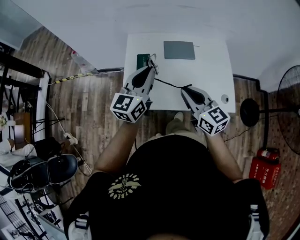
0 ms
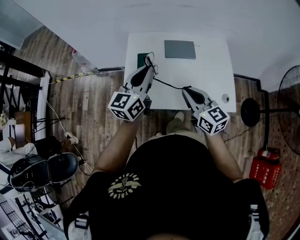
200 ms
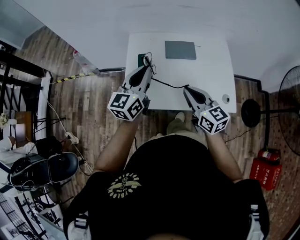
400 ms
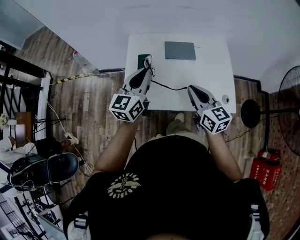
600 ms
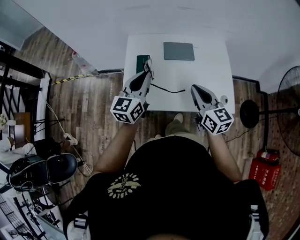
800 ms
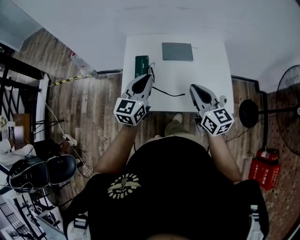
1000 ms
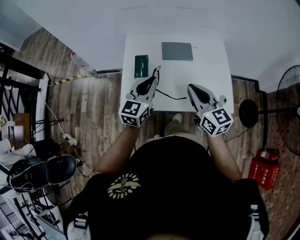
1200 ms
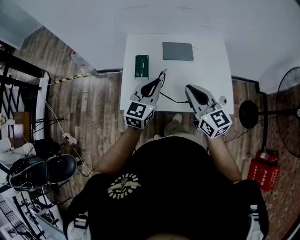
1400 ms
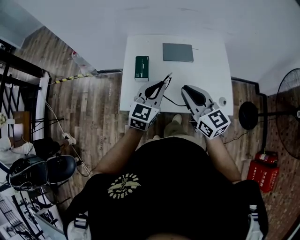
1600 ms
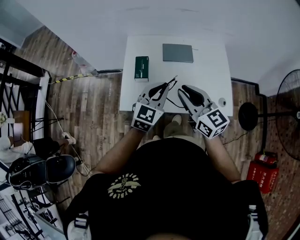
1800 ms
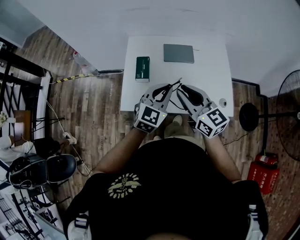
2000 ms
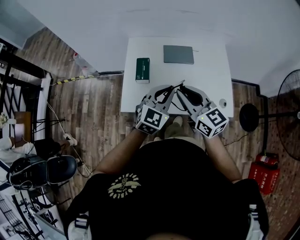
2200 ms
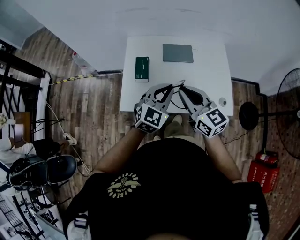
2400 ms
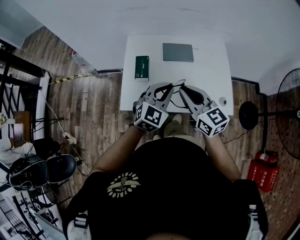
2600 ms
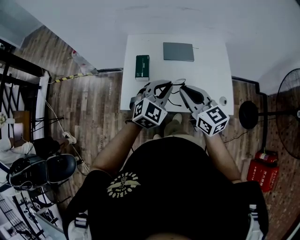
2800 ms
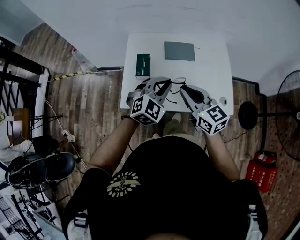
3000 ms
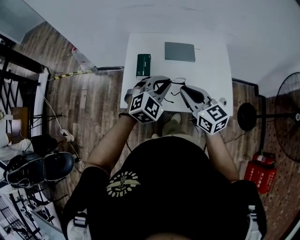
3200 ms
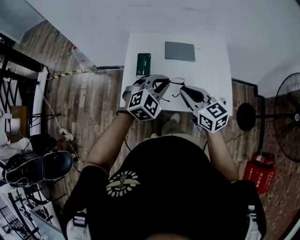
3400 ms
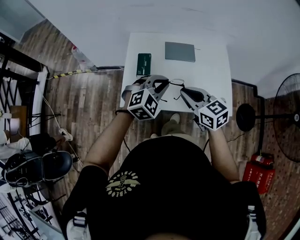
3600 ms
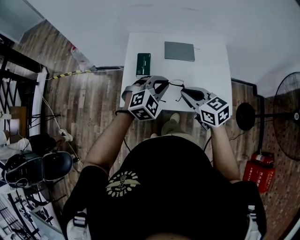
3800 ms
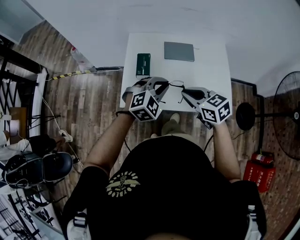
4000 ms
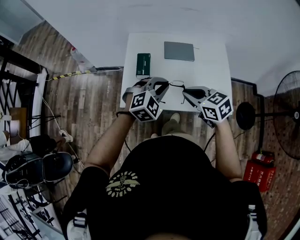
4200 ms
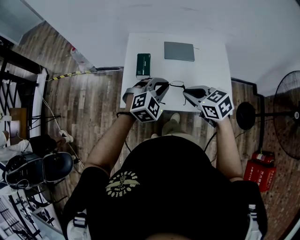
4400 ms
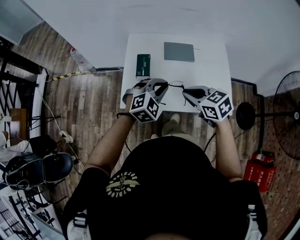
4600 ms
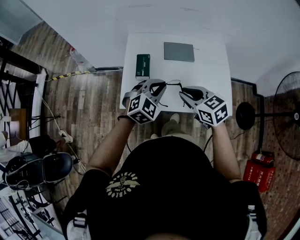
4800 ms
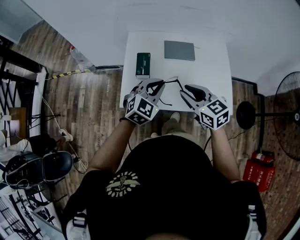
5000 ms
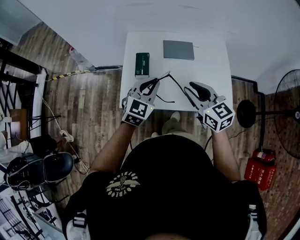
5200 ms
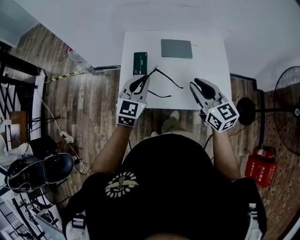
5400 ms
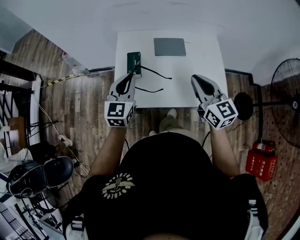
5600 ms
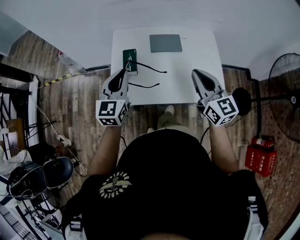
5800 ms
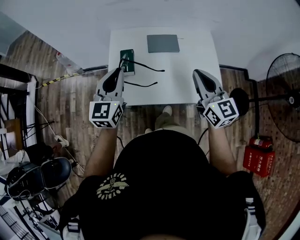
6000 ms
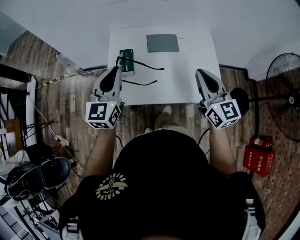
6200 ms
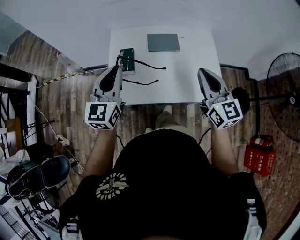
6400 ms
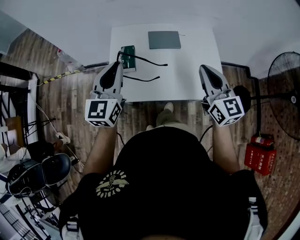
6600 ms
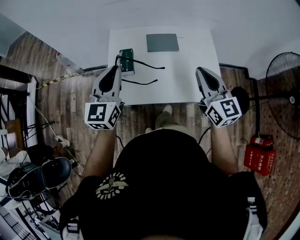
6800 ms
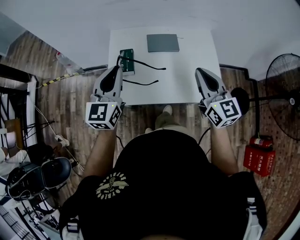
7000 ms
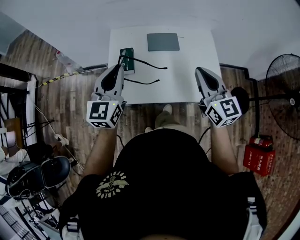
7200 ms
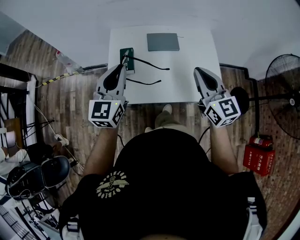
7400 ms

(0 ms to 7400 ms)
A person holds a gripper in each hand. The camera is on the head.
0 ms - 1400 ms: The left gripper heads downward, covering roughly 5 cm.
1400 ms - 3000 ms: The left gripper swivels roughly 40 degrees.
3000 ms - 4400 ms: The right gripper shifts by some 5 cm, and rotates approximately 30 degrees.
4400 ms - 6000 ms: The left gripper goes some 15 cm to the left and upward, and swivels approximately 60 degrees. The right gripper heads upward and to the right, covering some 15 cm, points its fingers approximately 30 degrees further upward, and opens and closes again.
6000 ms - 7400 ms: There are only small adjustments of the grippers.

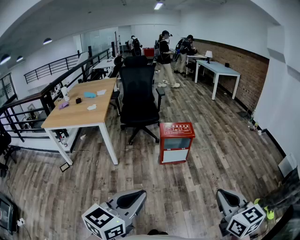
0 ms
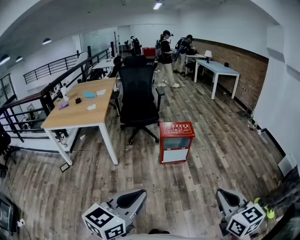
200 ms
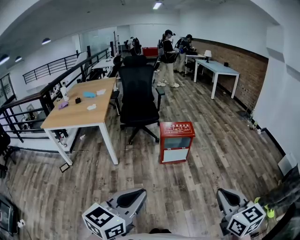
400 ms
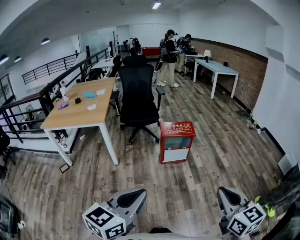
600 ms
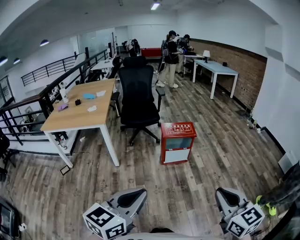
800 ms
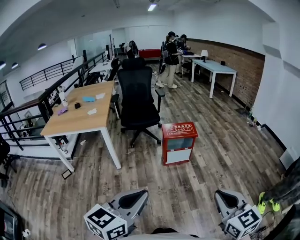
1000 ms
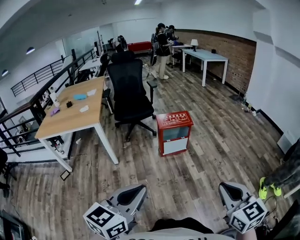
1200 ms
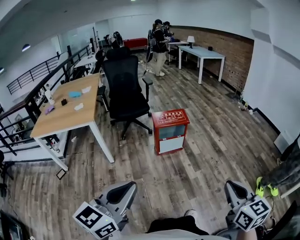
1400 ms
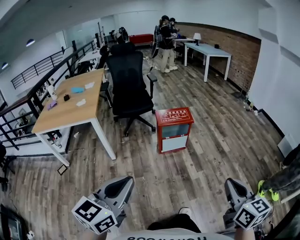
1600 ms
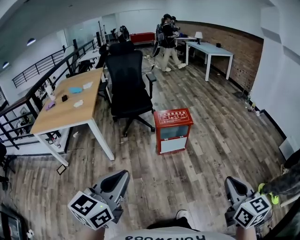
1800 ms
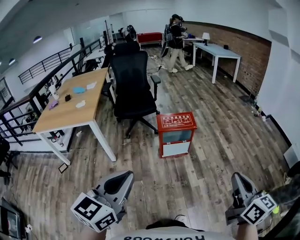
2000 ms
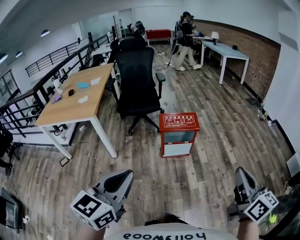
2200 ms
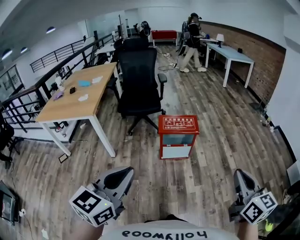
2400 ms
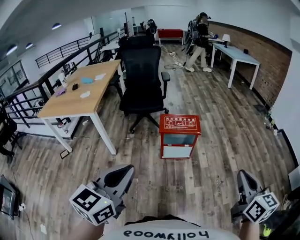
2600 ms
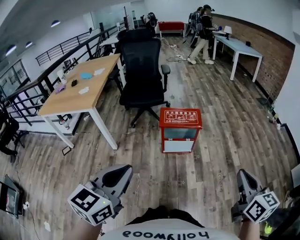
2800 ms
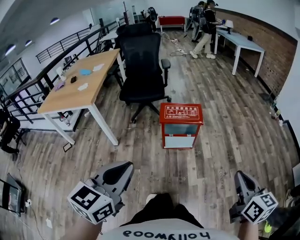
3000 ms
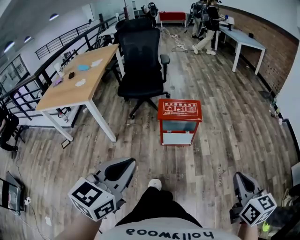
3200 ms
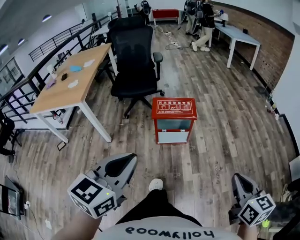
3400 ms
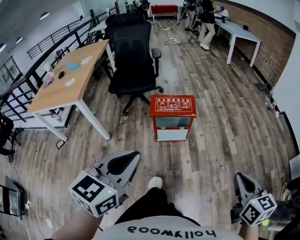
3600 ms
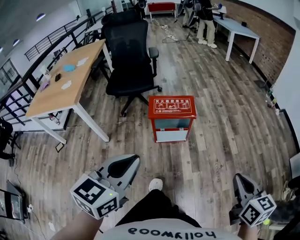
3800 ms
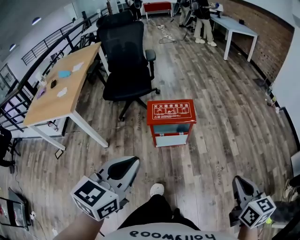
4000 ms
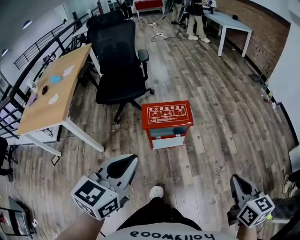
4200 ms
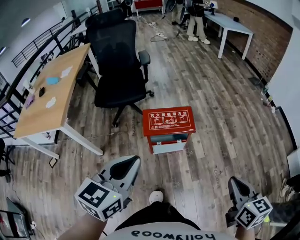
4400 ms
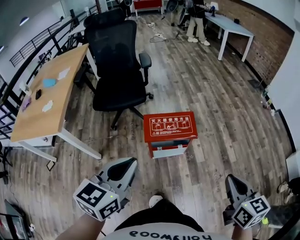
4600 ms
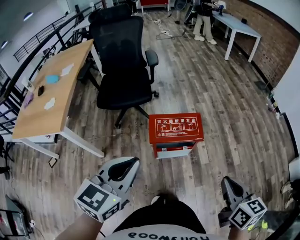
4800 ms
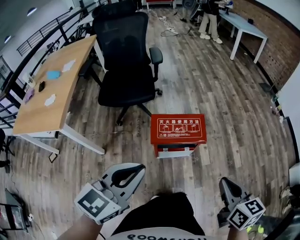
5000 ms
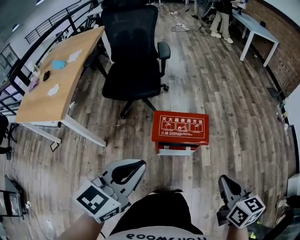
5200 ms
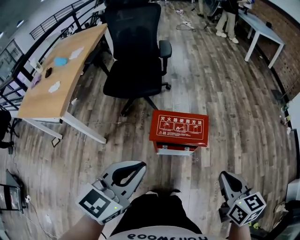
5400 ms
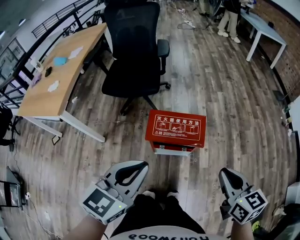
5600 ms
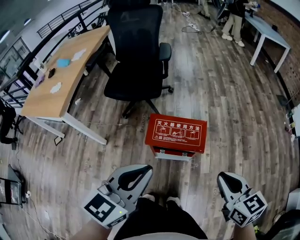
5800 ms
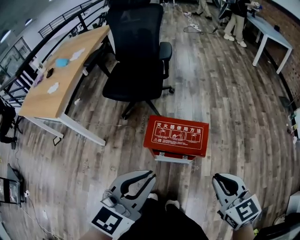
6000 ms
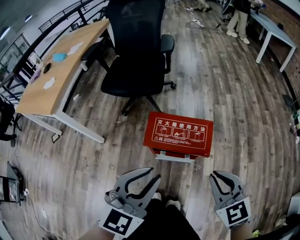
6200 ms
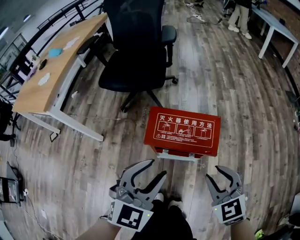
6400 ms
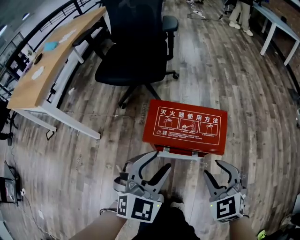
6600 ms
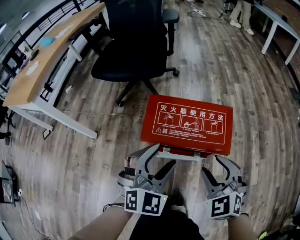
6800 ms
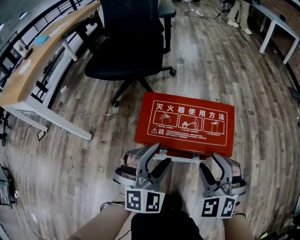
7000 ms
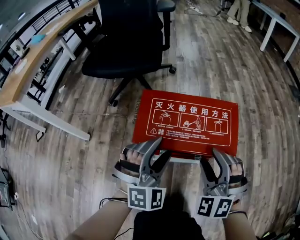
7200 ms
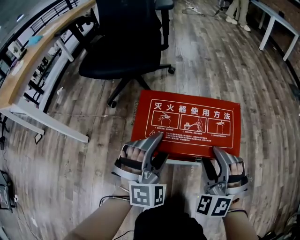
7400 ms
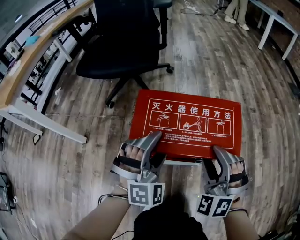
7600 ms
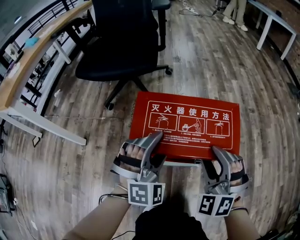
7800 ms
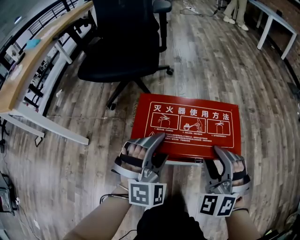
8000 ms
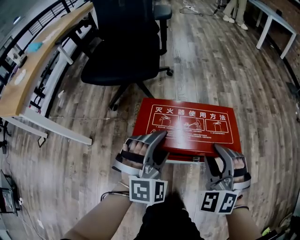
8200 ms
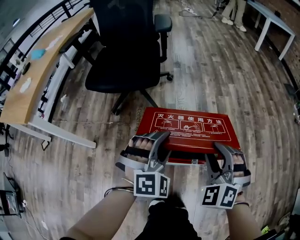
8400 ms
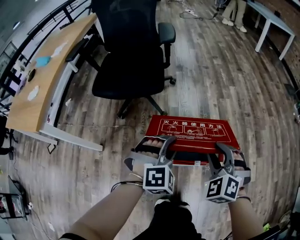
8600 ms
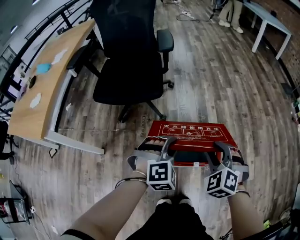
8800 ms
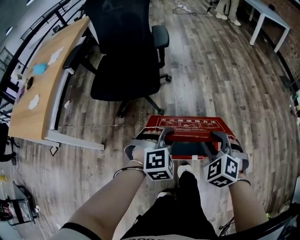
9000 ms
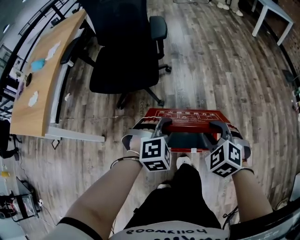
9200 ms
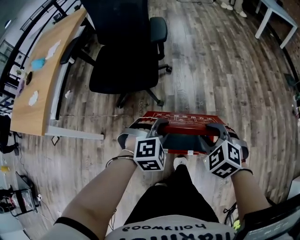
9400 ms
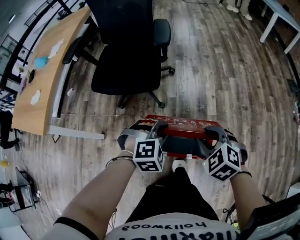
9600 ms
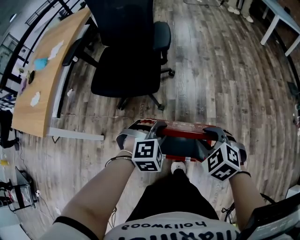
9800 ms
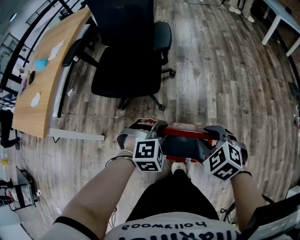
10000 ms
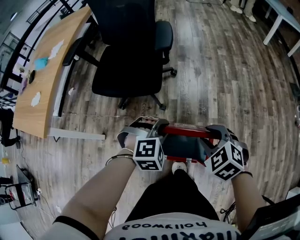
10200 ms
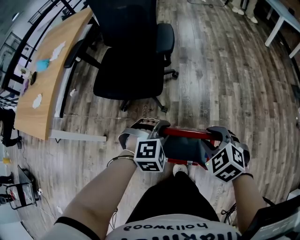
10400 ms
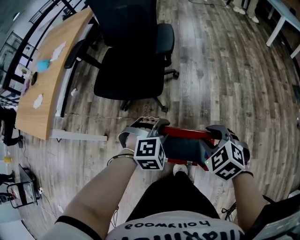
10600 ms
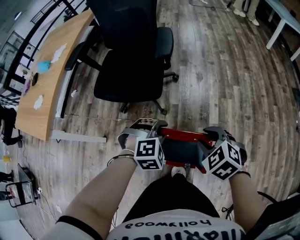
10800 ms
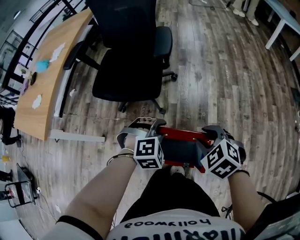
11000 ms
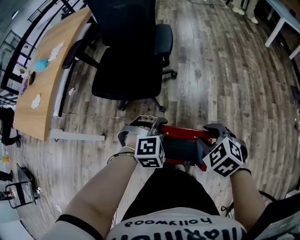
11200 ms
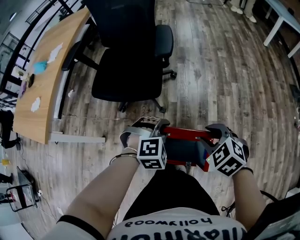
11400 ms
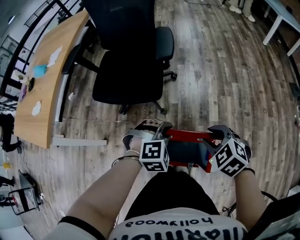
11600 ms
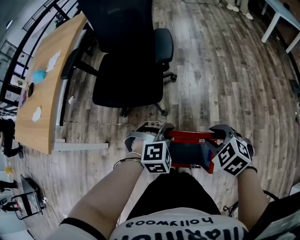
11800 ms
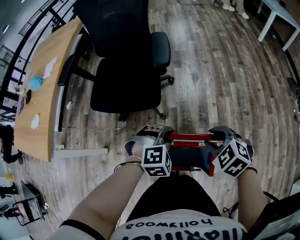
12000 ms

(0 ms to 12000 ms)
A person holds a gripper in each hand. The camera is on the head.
0 ms - 1600 ms: The right gripper ends up some 5 cm from where it was. Meanwhile the left gripper moves to the left and forward, approximately 10 cm.
1600 ms - 3000 ms: The two grippers go roughly 25 cm forward and to the right.
3000 ms - 4400 ms: The right gripper travels forward by roughly 15 cm; the left gripper is displaced forward by about 25 cm.
4400 ms - 6000 ms: The left gripper moves forward, to the right and downward, approximately 15 cm. The right gripper moves forward, approximately 25 cm, and swivels approximately 40 degrees.
6000 ms - 7600 ms: Both grippers travel together downward and forward, roughly 40 cm. The left gripper rolls clockwise, seen from behind, by some 60 degrees, and opens its fingers. The right gripper rolls counterclockwise, seen from behind, by about 60 degrees, and opens.
7600 ms - 9000 ms: The two grippers go roughly 15 cm upward. The right gripper changes its angle by some 30 degrees; the left gripper turns by roughly 30 degrees, and closes its fingers.
9000 ms - 10400 ms: Both grippers travel together forward, approximately 10 cm.
10400 ms - 12000 ms: There are only small adjustments of the grippers.

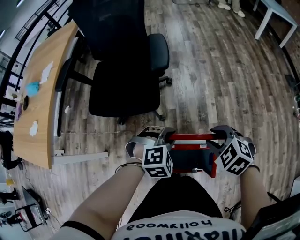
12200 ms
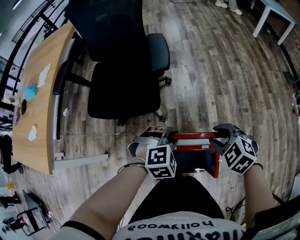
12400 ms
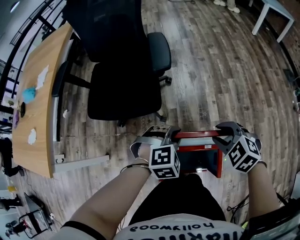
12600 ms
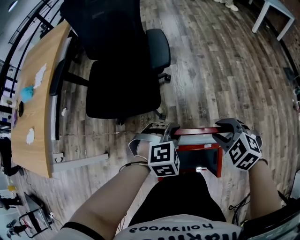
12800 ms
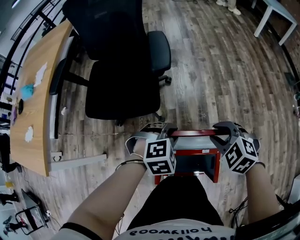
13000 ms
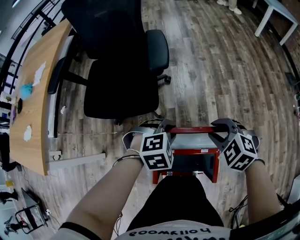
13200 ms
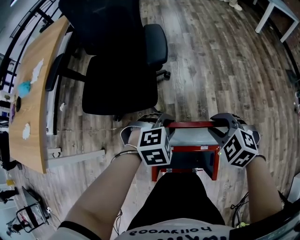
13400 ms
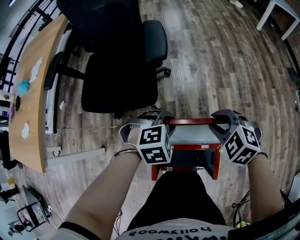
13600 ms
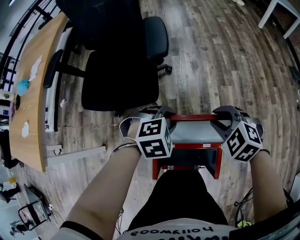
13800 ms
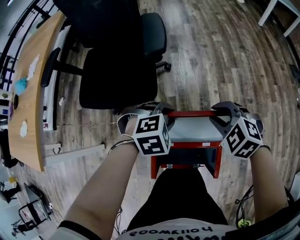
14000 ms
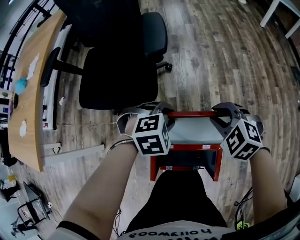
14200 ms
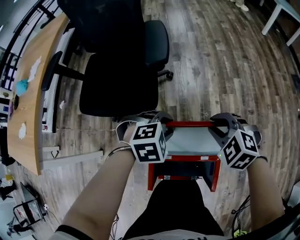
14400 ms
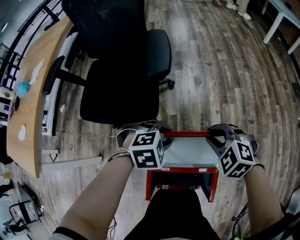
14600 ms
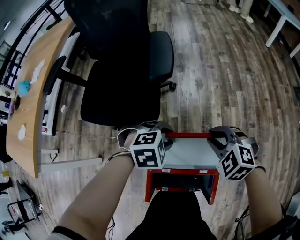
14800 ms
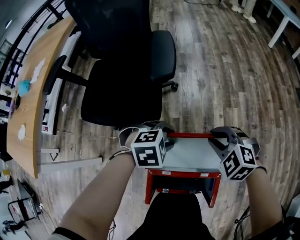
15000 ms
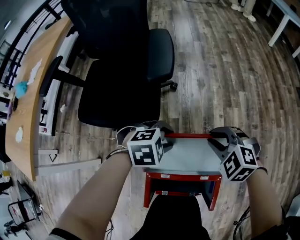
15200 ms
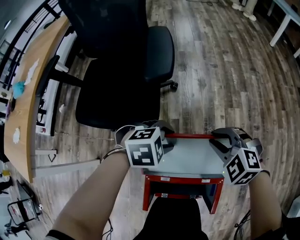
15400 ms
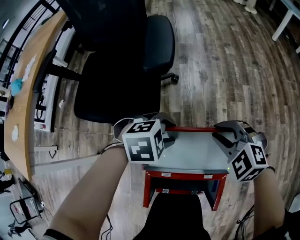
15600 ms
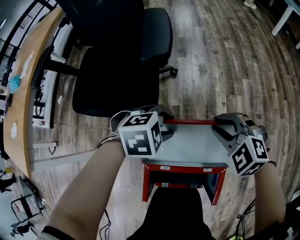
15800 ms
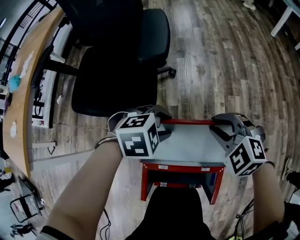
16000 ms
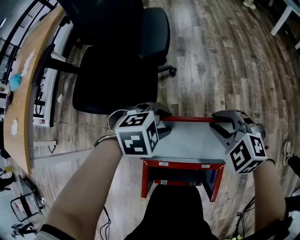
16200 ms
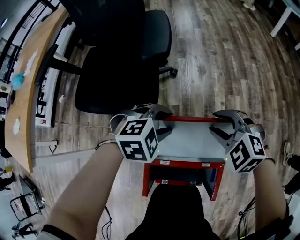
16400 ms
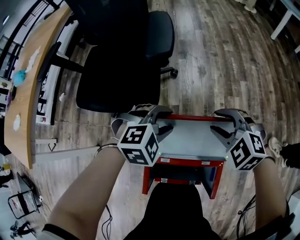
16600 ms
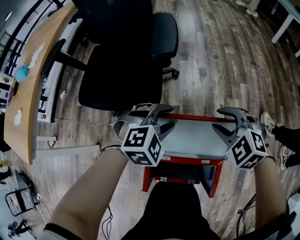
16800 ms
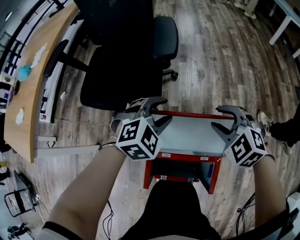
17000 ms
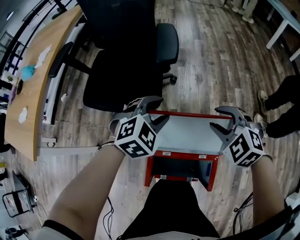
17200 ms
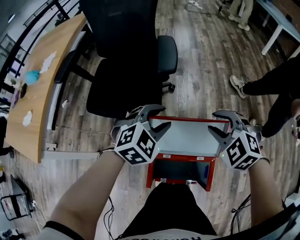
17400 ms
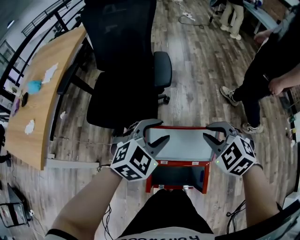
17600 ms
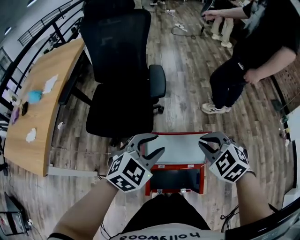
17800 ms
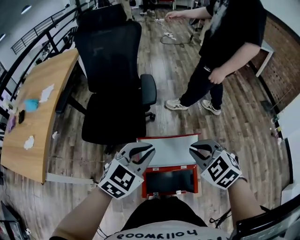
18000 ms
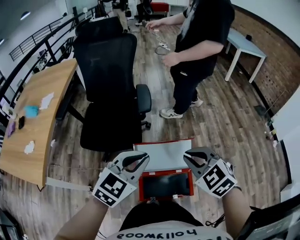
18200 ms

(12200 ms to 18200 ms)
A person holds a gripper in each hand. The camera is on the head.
12200 ms - 13800 ms: Both grippers travel together forward, roughly 5 cm.
13800 ms - 15200 ms: Both grippers move downward, about 5 cm.
15200 ms - 16600 ms: The grippers move only a little.
16600 ms - 18200 ms: The two grippers go some 35 cm upward and backward. The right gripper rotates about 30 degrees, and closes up; the left gripper points its fingers approximately 30 degrees further upward, and closes up.
